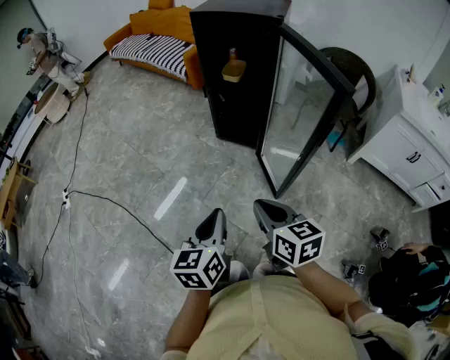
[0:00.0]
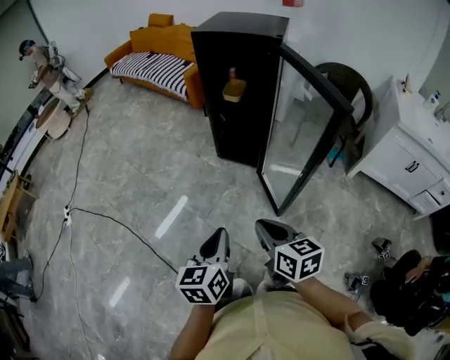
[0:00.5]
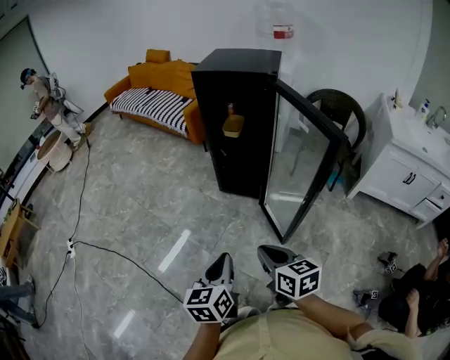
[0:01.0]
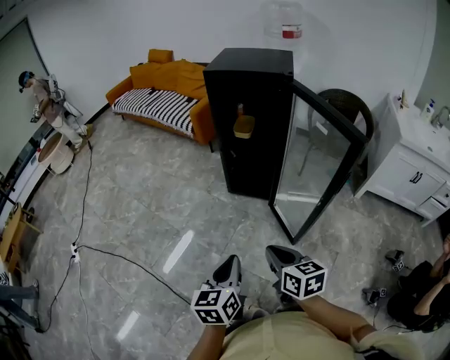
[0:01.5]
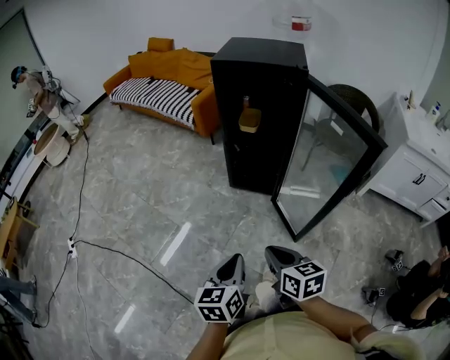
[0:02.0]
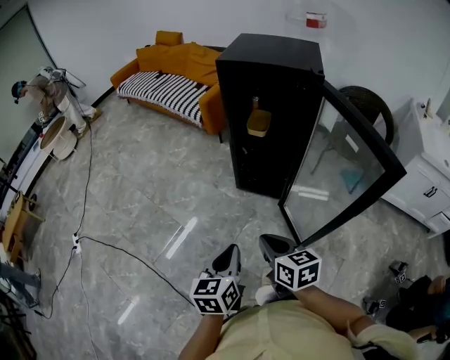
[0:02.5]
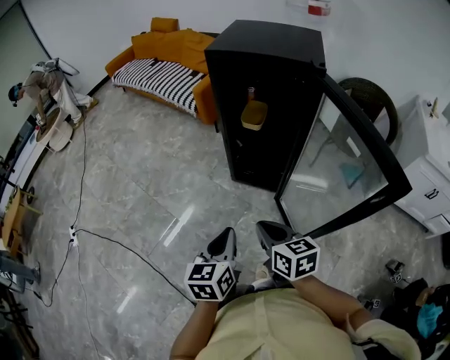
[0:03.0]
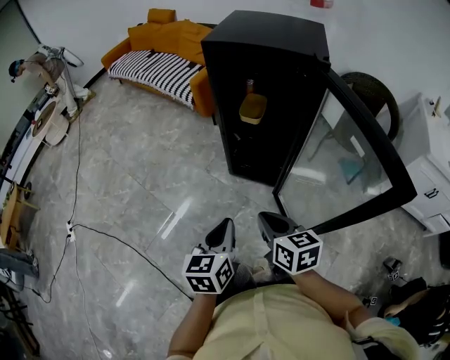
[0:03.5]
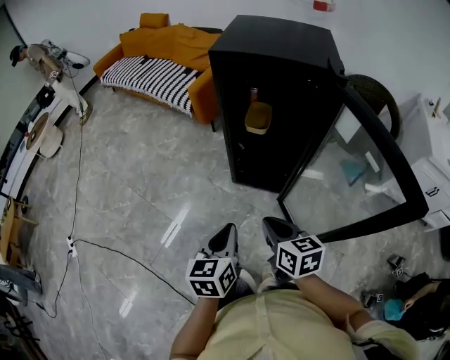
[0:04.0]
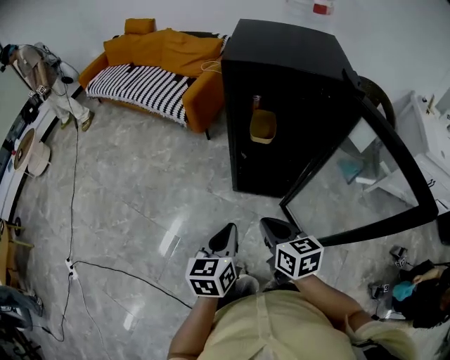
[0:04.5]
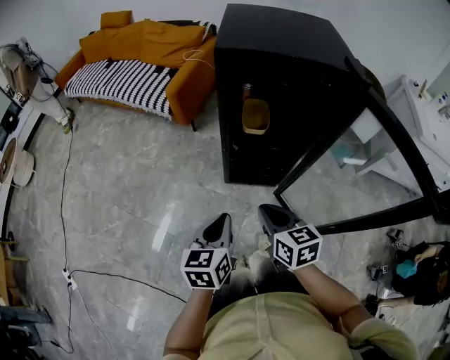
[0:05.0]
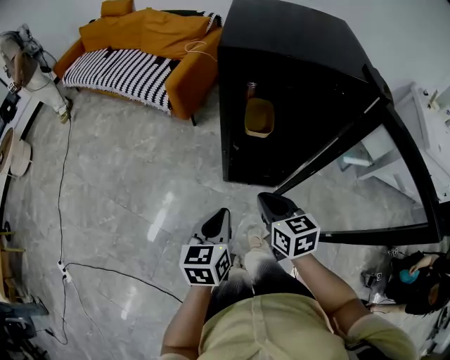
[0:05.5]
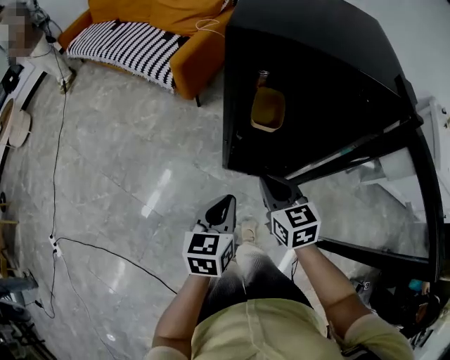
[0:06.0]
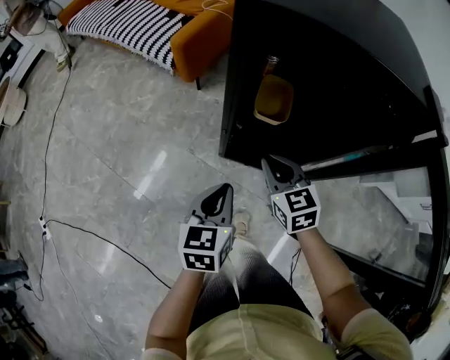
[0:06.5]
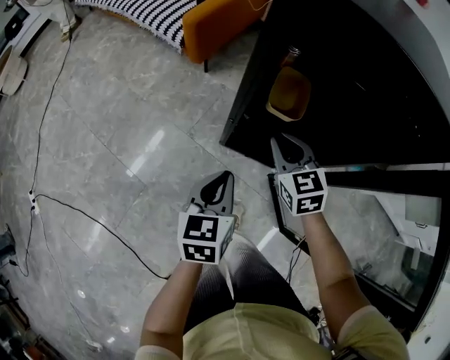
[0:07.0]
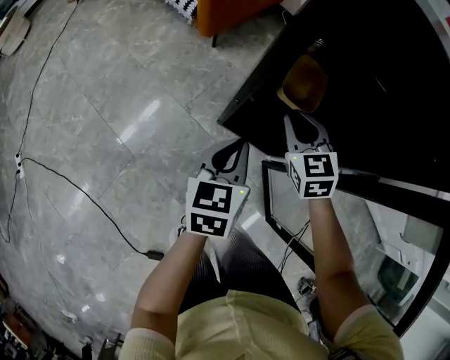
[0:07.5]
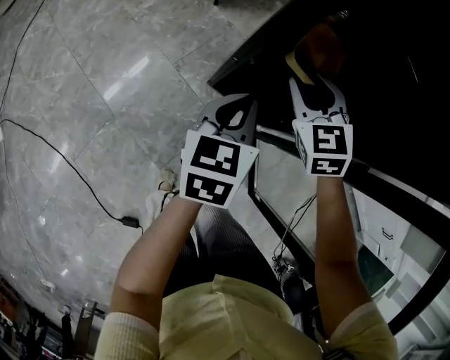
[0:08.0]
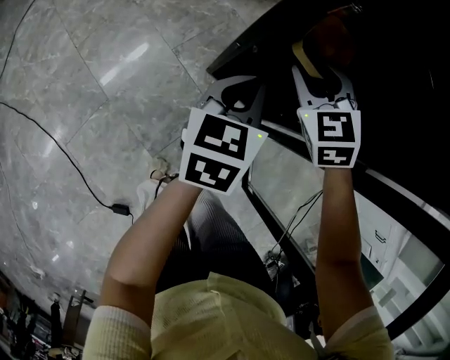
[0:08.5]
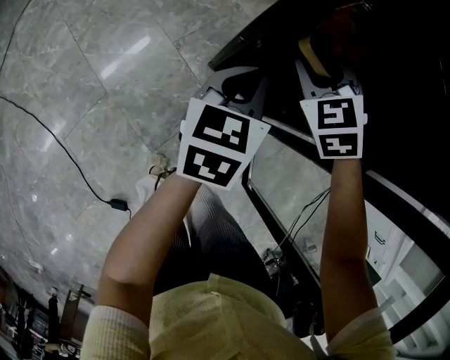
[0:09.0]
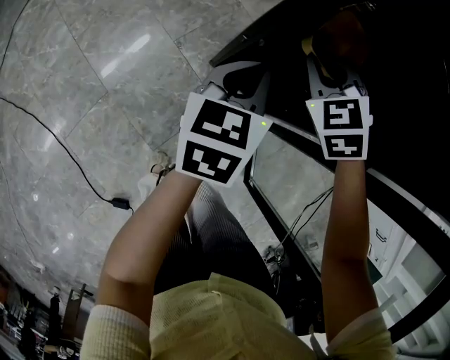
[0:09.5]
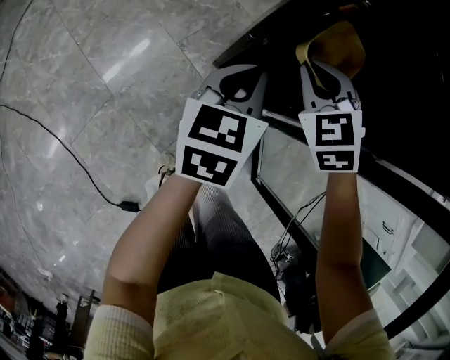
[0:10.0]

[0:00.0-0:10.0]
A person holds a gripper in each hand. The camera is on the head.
0:00.0 to 0:02.0: The grippers both shift to the left and forward by roughly 10 cm.
0:02.0 to 0:04.0: The two grippers go about 20 cm forward.
0:04.0 to 0:06.0: The two grippers go about 20 cm forward.
0:06.0 to 0:08.0: Both grippers travel together forward and downward, approximately 15 cm. The right gripper swivels roughly 40 degrees, and opens its fingers.
0:08.0 to 0:10.0: The right gripper closes up.

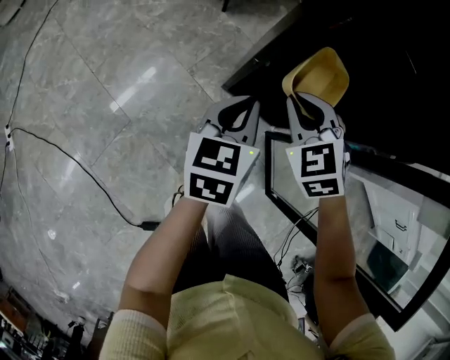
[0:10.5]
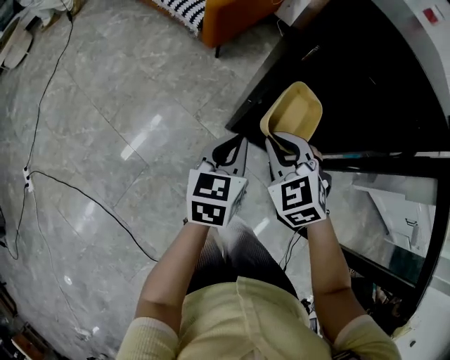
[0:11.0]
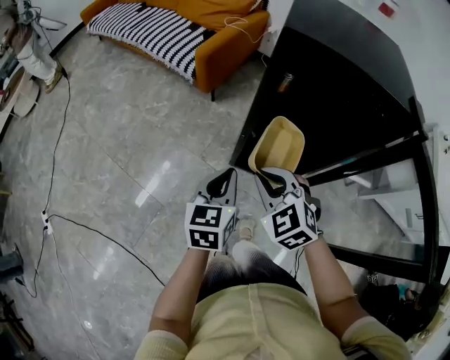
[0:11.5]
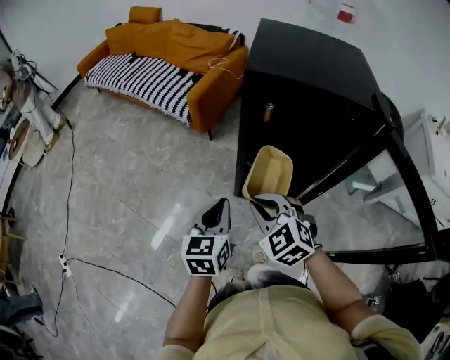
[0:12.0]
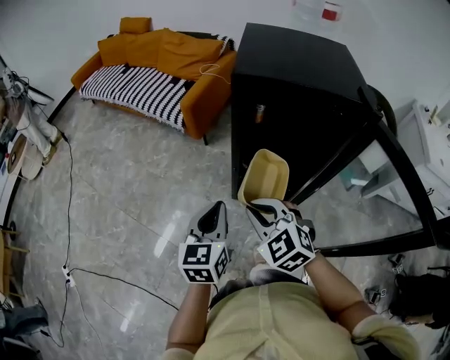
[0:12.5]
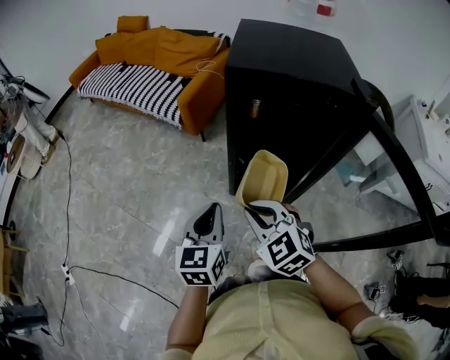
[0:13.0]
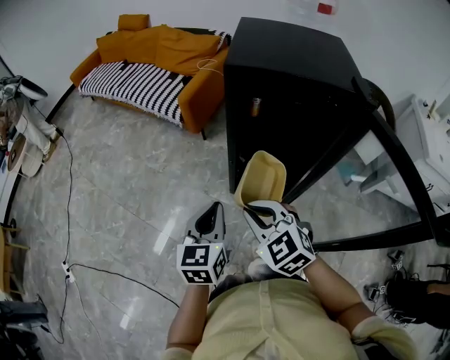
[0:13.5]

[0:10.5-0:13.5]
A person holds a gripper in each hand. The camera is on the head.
0:10.5 to 0:12.0: The two grippers go some 15 cm upward, backward and to the left.
0:12.0 to 0:13.5: The right gripper heads backward, covering some 5 cm.

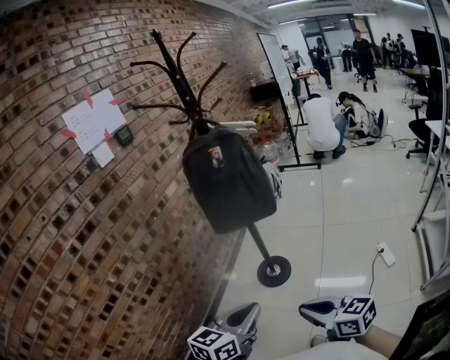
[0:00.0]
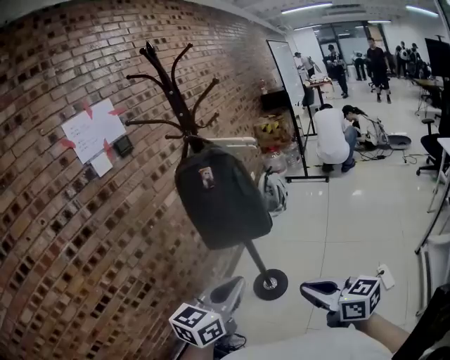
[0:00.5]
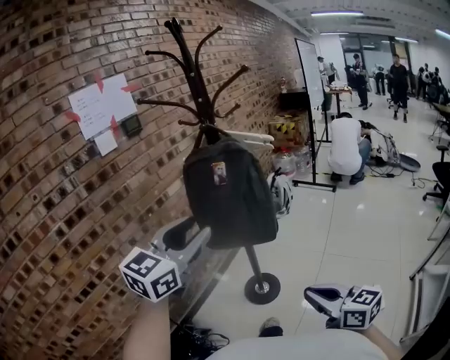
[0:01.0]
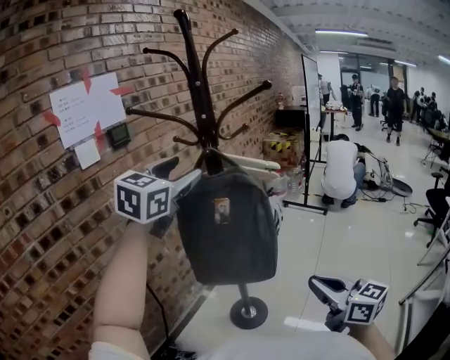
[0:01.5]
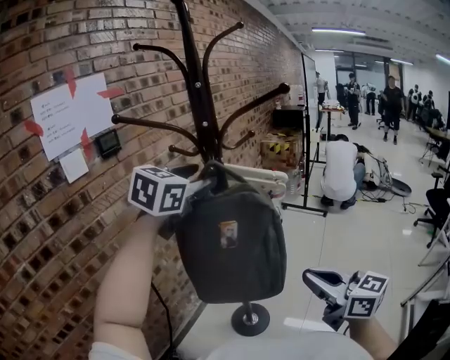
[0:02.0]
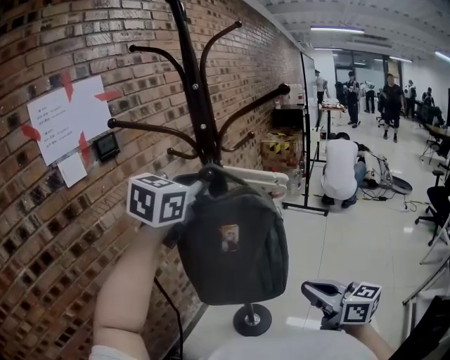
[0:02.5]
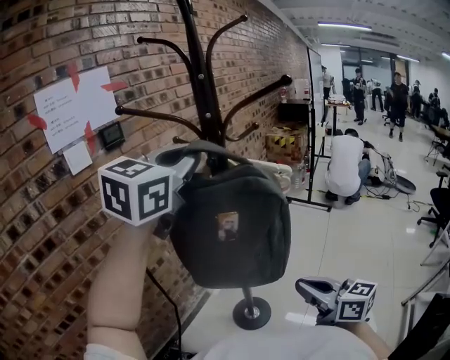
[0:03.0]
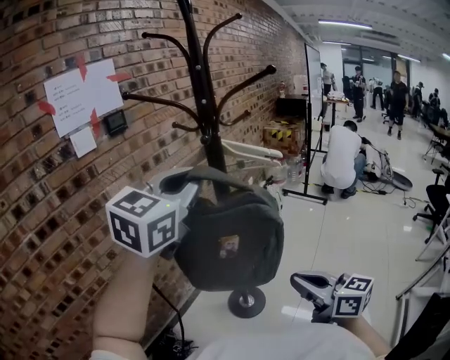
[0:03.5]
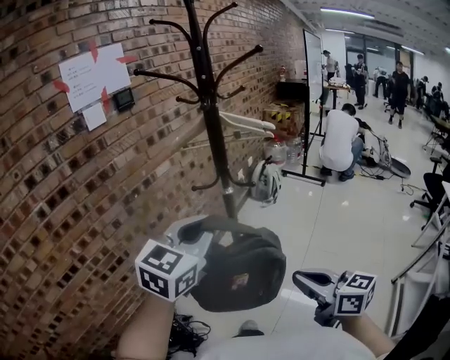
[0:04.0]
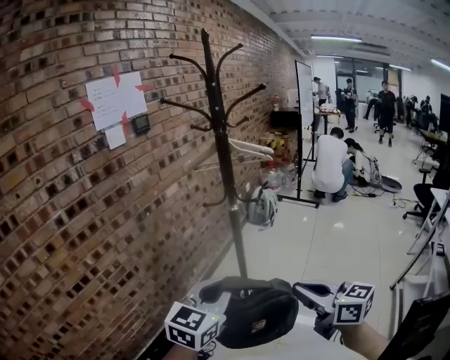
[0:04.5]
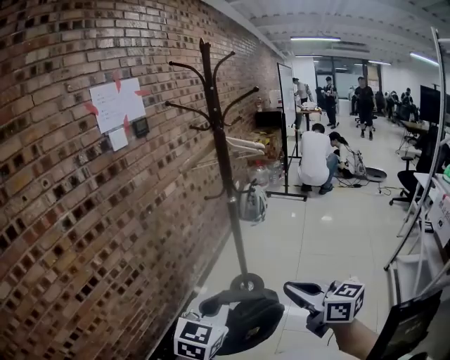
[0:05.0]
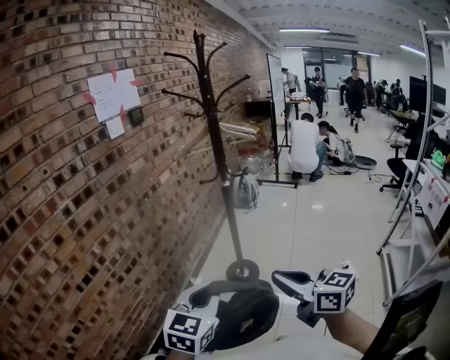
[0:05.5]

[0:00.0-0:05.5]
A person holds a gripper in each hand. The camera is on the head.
0:00.0 to 0:02.0: The right gripper goes about 40 cm forward and upward. Meanwhile the left gripper is displaced forward and upward by about 60 cm, turns by about 30 degrees, and opens.
0:02.0 to 0:03.5: The right gripper heads backward and downward, covering approximately 10 cm. Meanwhile the left gripper heads backward, covering some 15 cm, and closes its fingers.
0:03.5 to 0:05.5: The right gripper goes roughly 35 cm backward and to the left. Meanwhile the left gripper shifts some 50 cm backward and downward.

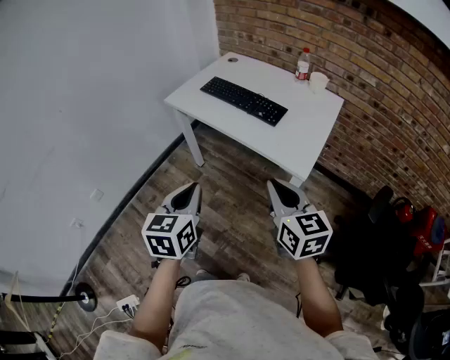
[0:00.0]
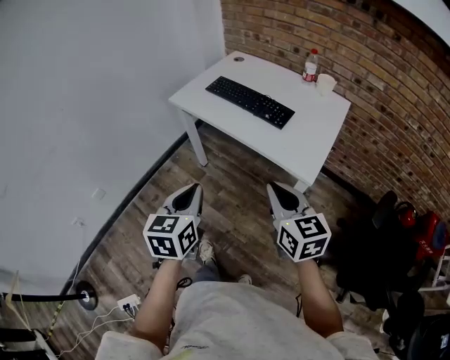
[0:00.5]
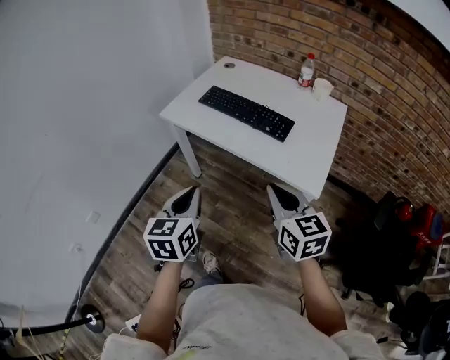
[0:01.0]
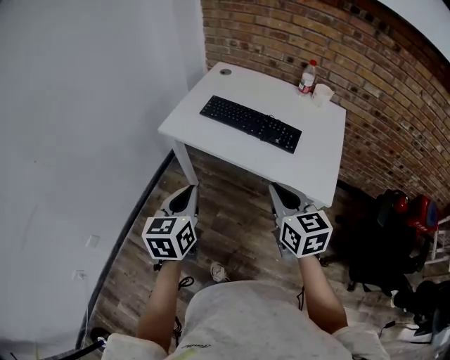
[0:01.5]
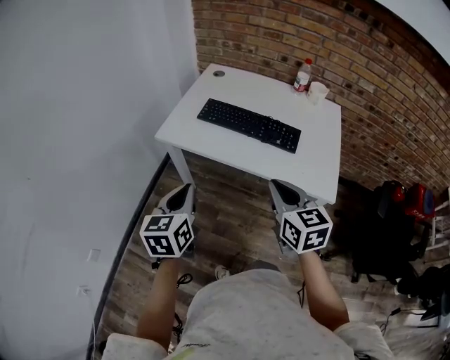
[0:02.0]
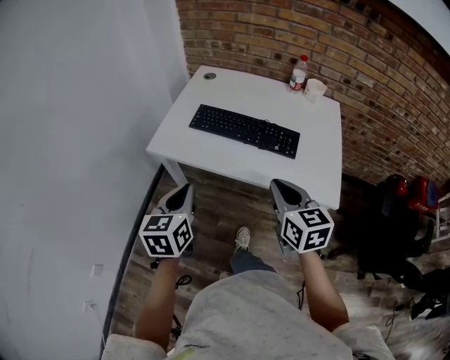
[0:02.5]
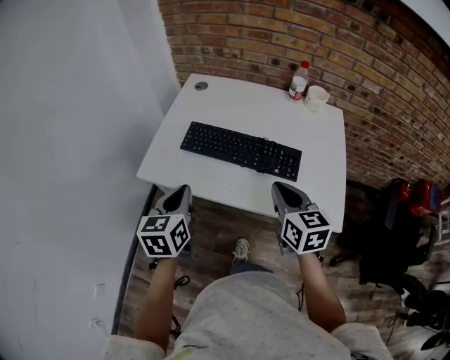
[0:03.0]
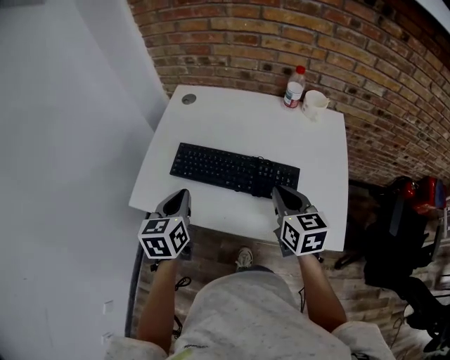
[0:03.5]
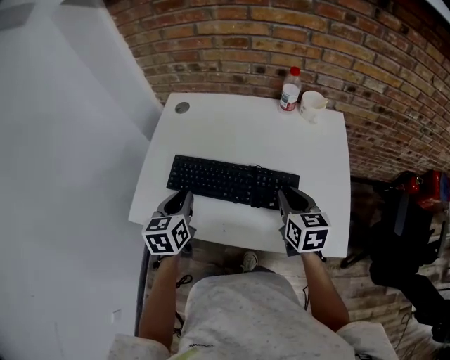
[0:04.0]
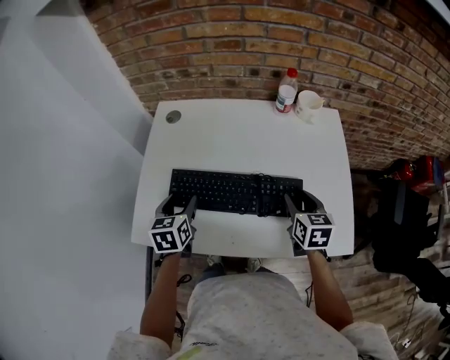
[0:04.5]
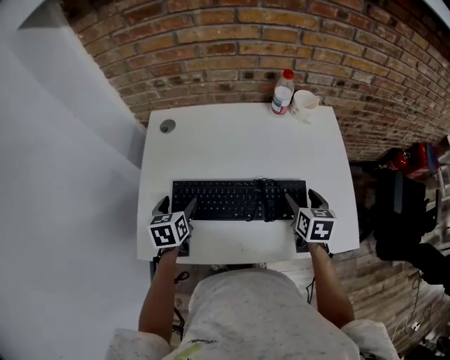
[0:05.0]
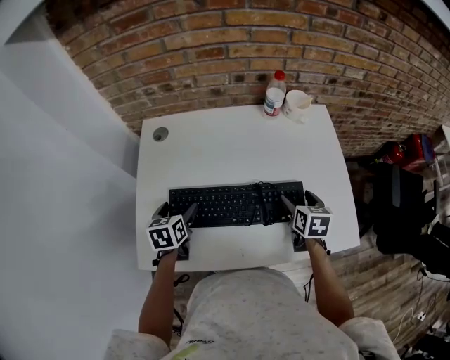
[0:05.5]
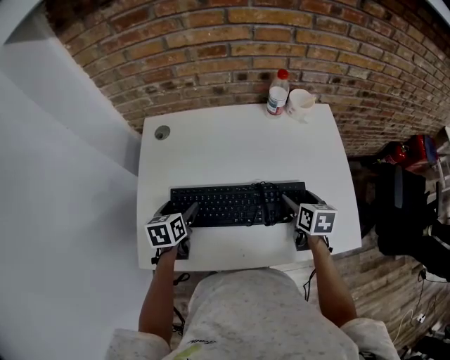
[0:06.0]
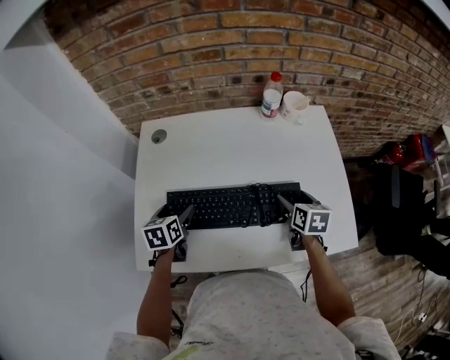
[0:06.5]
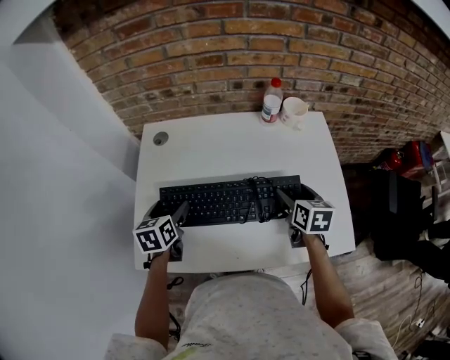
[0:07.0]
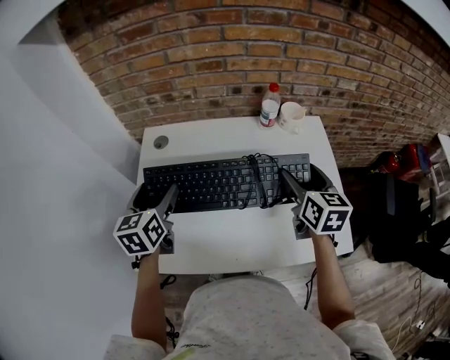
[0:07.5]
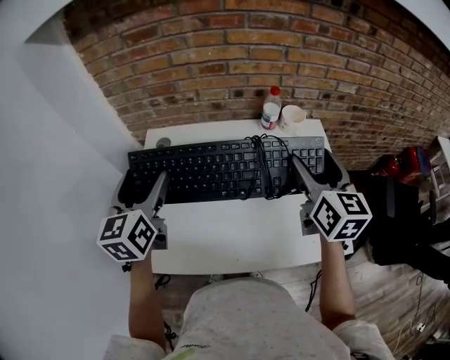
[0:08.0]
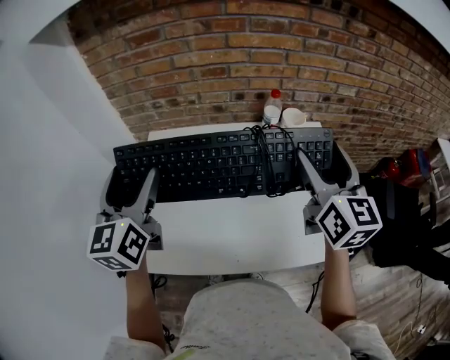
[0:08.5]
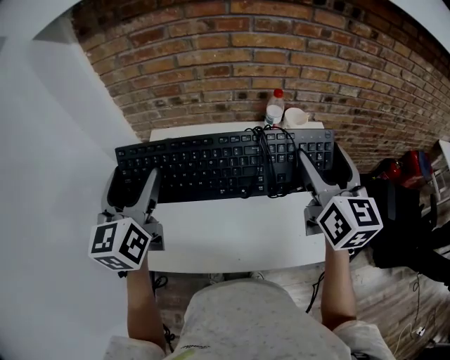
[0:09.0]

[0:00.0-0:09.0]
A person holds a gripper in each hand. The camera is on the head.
0:00.0 to 0:02.0: Both grippers move forward and to the left, roughly 30 cm.
0:02.0 to 0:04.5: The left gripper heads forward, covering some 40 cm, turns by some 20 degrees, and opens its fingers, while the right gripper travels forward and to the right by about 35 cm, swivels approximately 30 degrees, and opens.
0:04.5 to 0:07.0: The left gripper travels forward by about 5 cm, and opens; the right gripper opens up.
0:07.0 to 0:09.0: The grippers both shift upward by some 25 cm. The right gripper angles its fingers upward, by some 40 degrees. The left gripper angles its fingers upward, by about 40 degrees.
